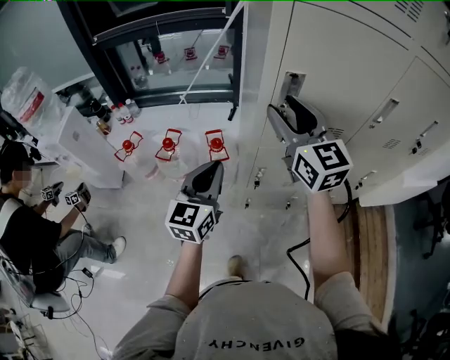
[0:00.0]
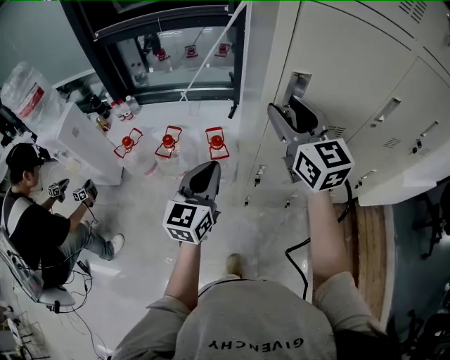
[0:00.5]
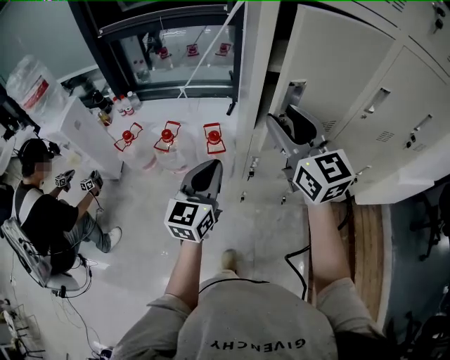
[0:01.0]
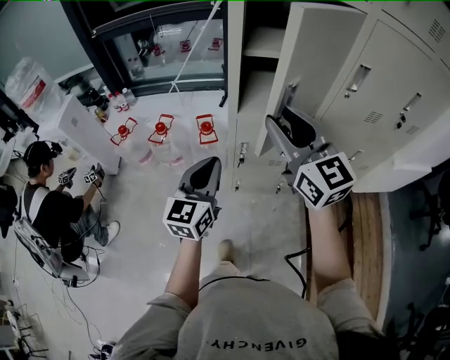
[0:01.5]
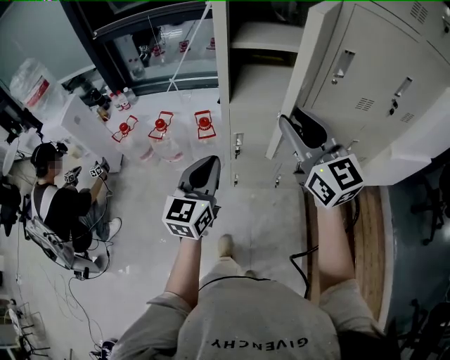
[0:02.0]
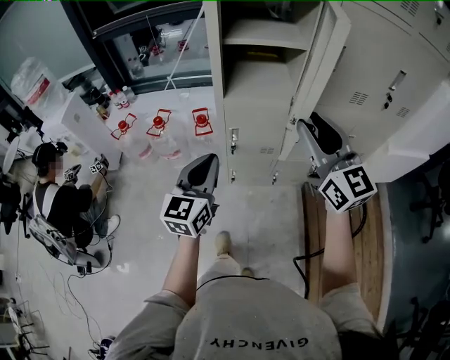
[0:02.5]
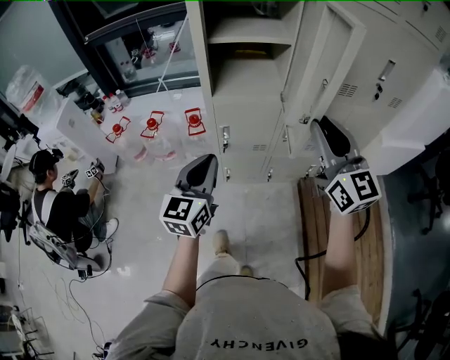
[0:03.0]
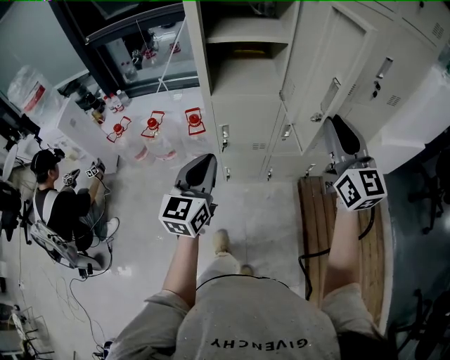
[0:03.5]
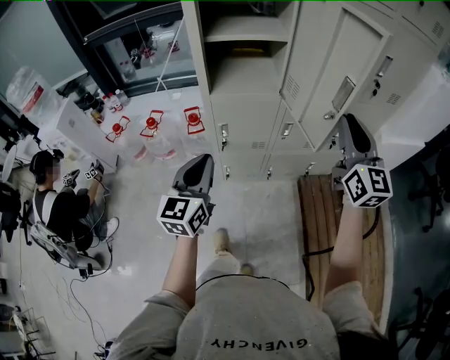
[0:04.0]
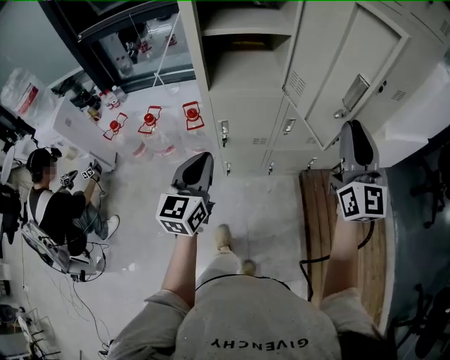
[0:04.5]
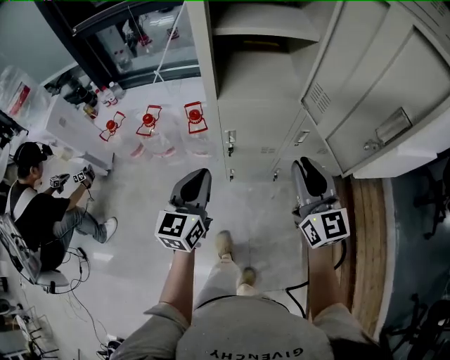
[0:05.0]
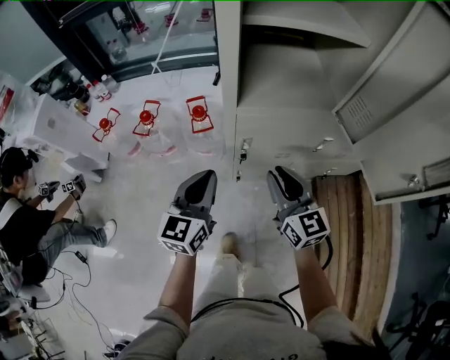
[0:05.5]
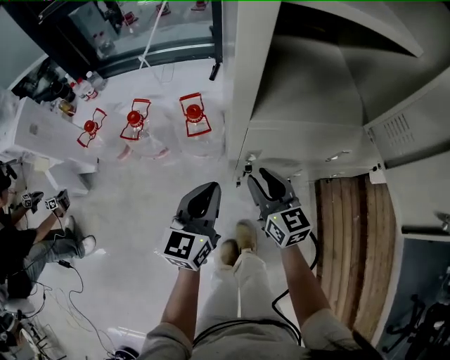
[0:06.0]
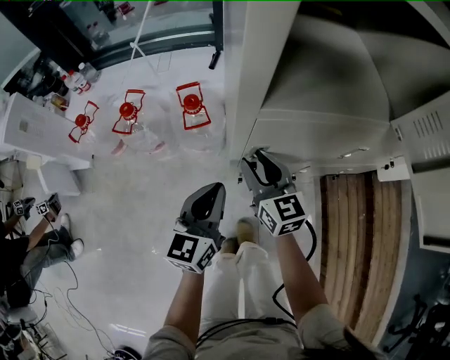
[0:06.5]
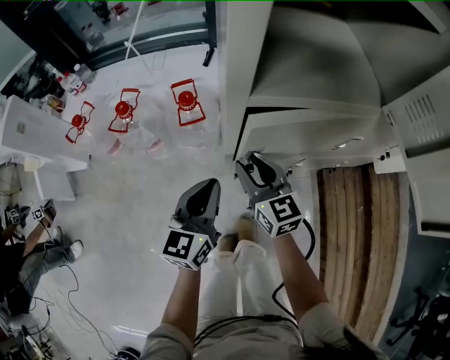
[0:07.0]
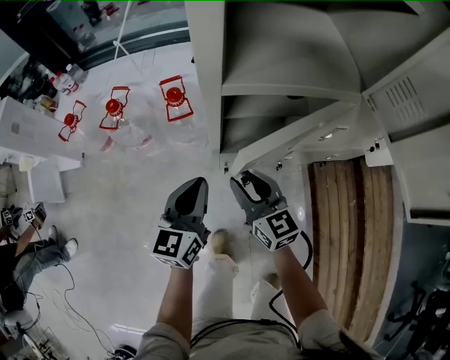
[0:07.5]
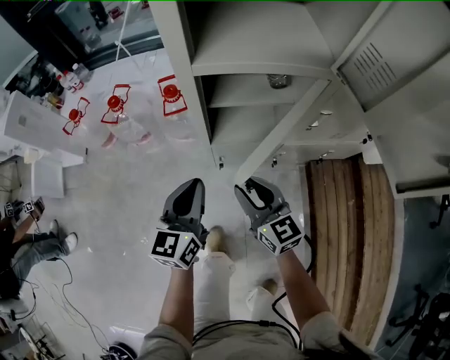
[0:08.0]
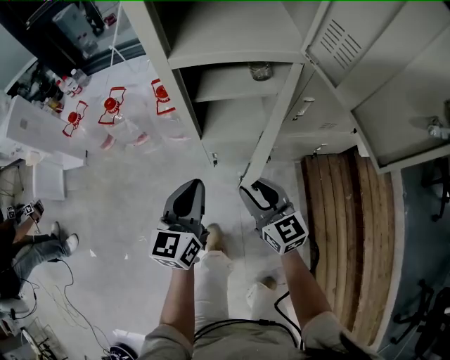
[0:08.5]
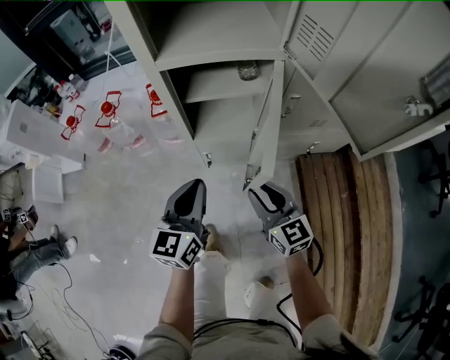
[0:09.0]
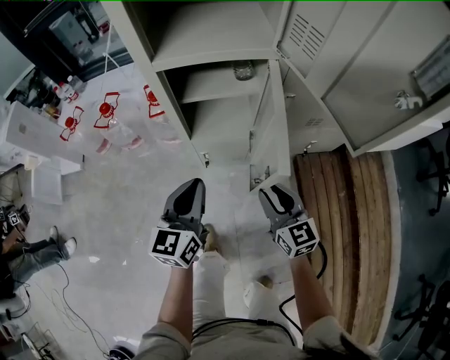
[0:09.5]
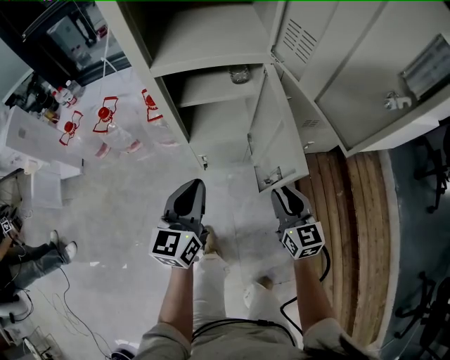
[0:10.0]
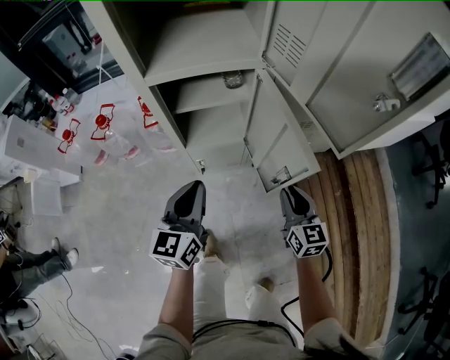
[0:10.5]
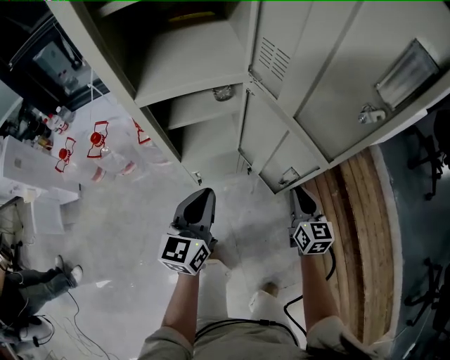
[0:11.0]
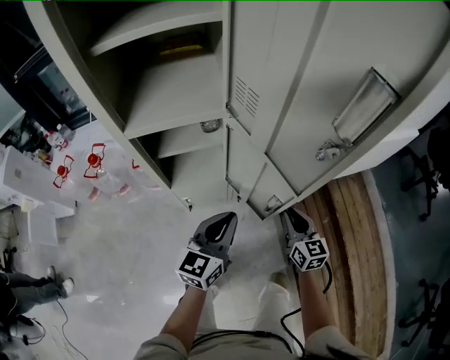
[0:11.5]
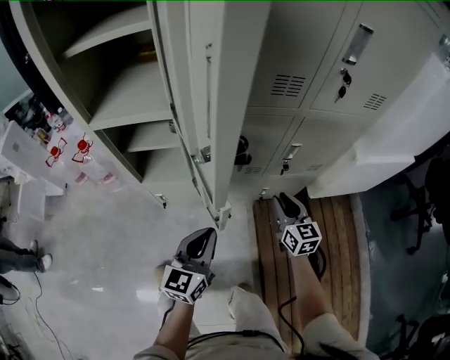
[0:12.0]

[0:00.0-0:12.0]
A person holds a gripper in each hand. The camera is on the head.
0:00.0 to 0:02.0: Both grippers travel together backward and to the right, some 20 cm.
0:02.0 to 0:04.0: The right gripper is displaced to the right by approximately 20 cm, and turns by approximately 20 degrees. Meanwhile the left gripper ends up roughly 5 cm from where it was.
0:04.0 to 0:06.0: The right gripper heads downward, to the left and forward, covering about 60 cm, and turns by some 30 degrees; the left gripper shifts about 35 cm downward, forward and to the left.
0:06.0 to 0:08.0: Both grippers move backward and to the right, some 10 cm.
0:08.0 to 0:10.0: The left gripper travels to the right and backward by approximately 10 cm; the right gripper is displaced to the right and backward by approximately 20 cm.
0:10.0 to 0:12.0: The right gripper is displaced to the right and forward by roughly 30 cm. The left gripper goes some 30 cm to the right.

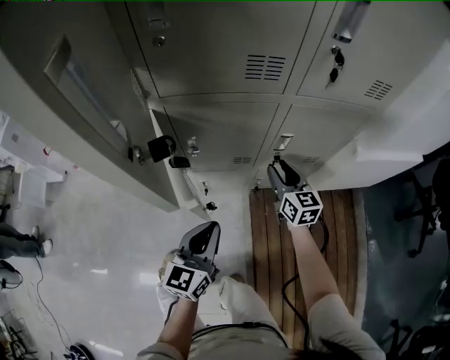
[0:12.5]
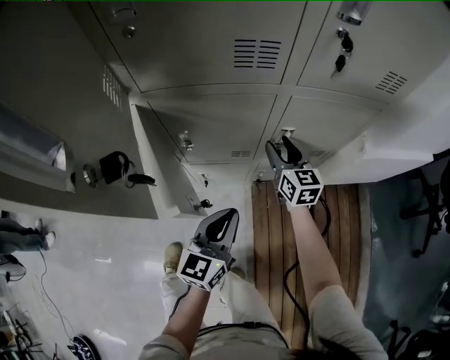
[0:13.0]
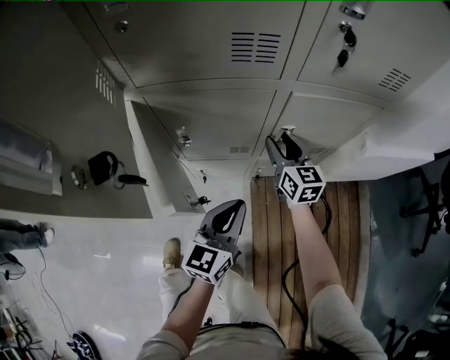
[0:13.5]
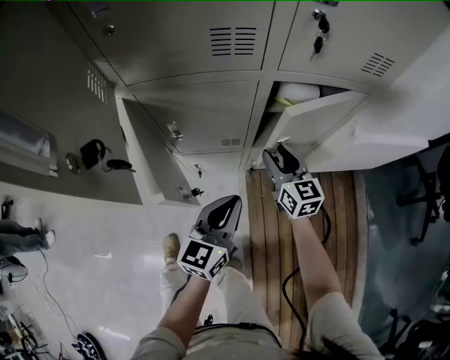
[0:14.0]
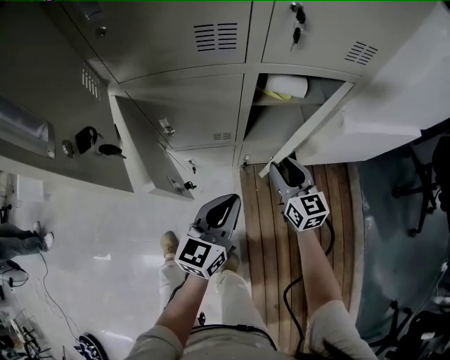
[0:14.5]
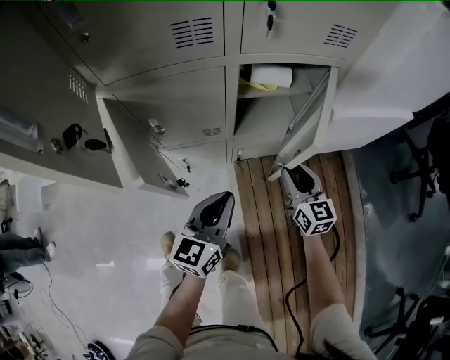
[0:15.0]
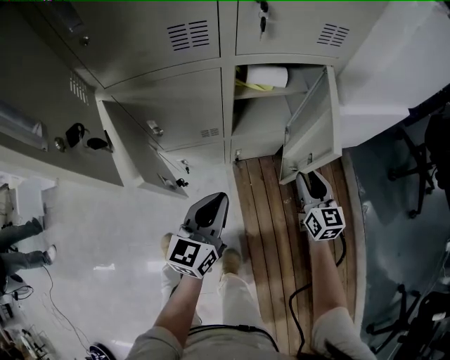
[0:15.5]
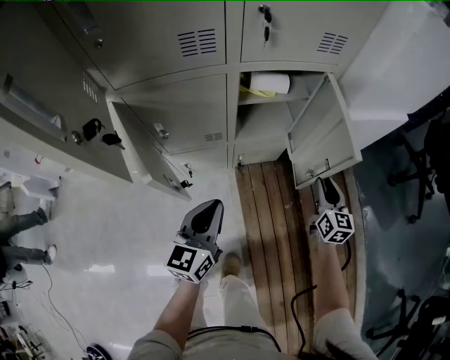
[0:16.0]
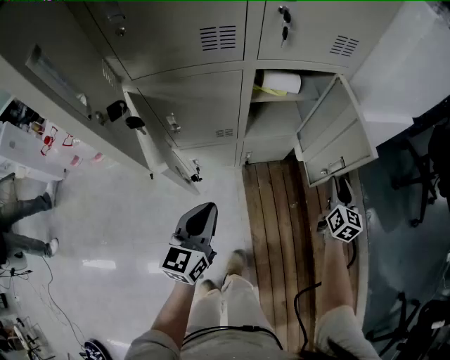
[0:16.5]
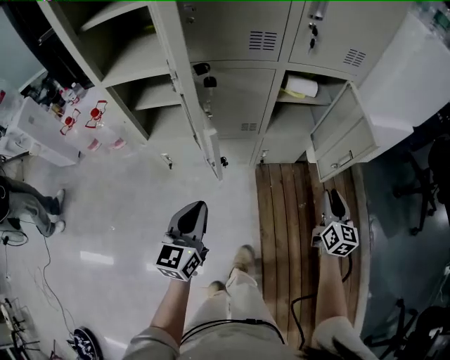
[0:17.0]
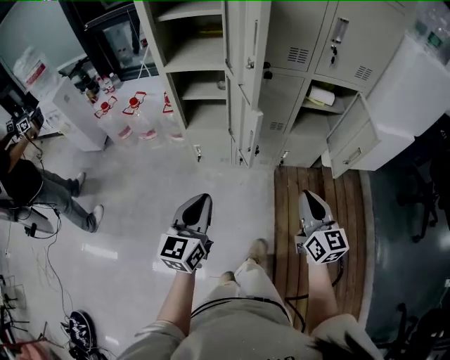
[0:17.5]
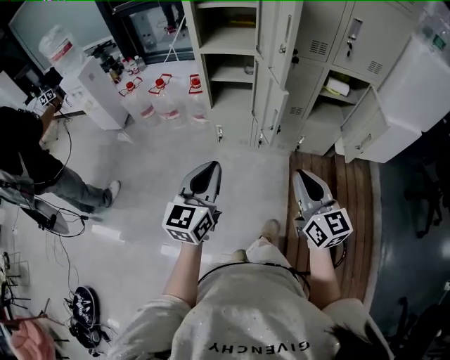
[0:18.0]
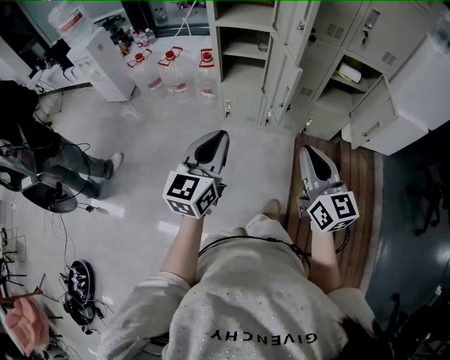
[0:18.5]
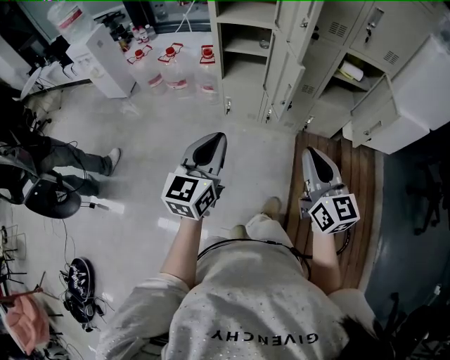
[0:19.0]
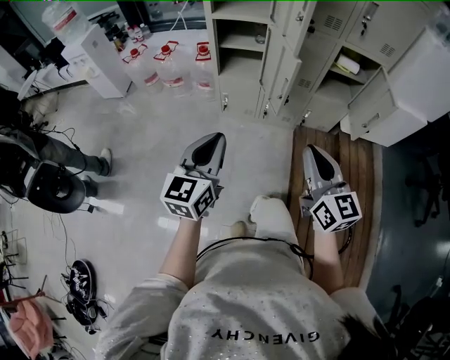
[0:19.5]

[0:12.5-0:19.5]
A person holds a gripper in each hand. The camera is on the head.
0:12.5 to 0:14.5: The right gripper moves to the right and backward, some 10 cm; the left gripper shifts some 10 cm to the right.
0:14.5 to 0:16.0: The right gripper heads to the right, covering some 20 cm, and changes its angle by about 30 degrees.
0:16.0 to 0:17.5: The grippers both shift backward, to the left and upward by approximately 40 cm. The right gripper rotates about 30 degrees, and closes its fingers.
0:17.5 to 0:19.5: The right gripper heads to the left, backward and upward, covering about 20 cm; the left gripper goes about 15 cm backward, to the left and upward.

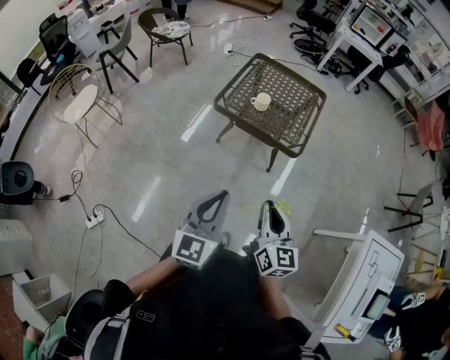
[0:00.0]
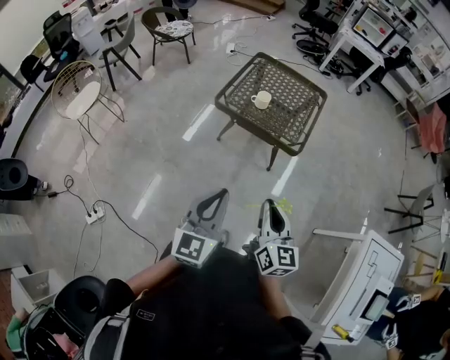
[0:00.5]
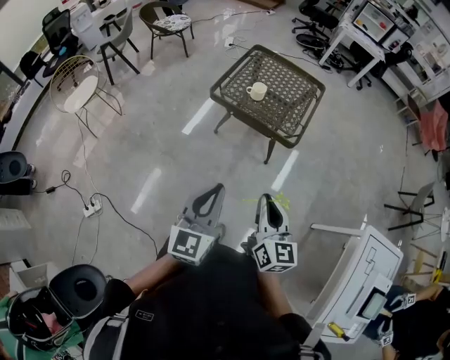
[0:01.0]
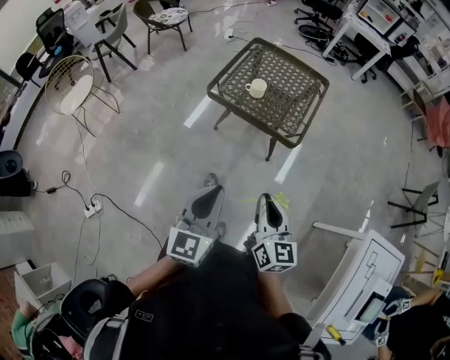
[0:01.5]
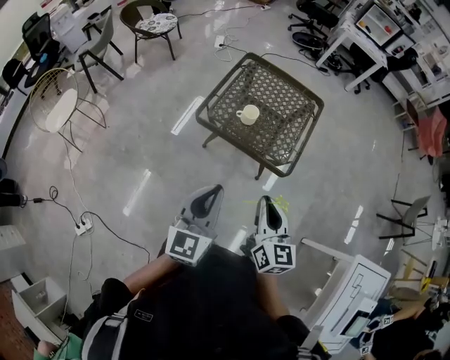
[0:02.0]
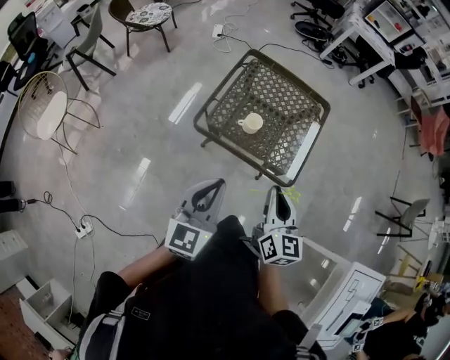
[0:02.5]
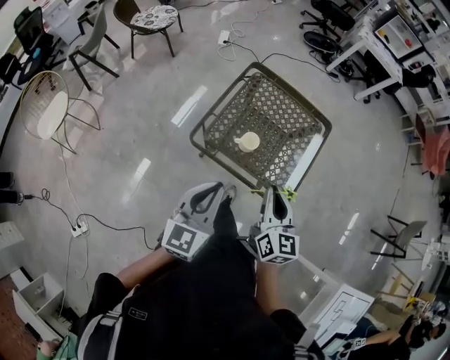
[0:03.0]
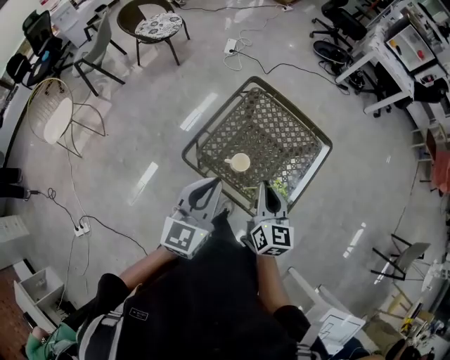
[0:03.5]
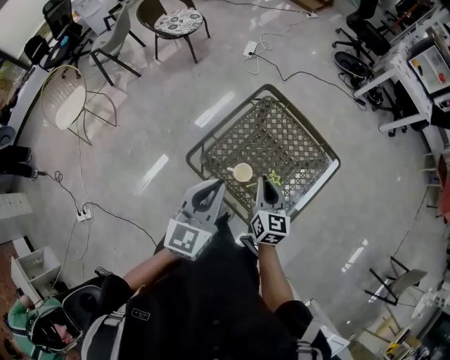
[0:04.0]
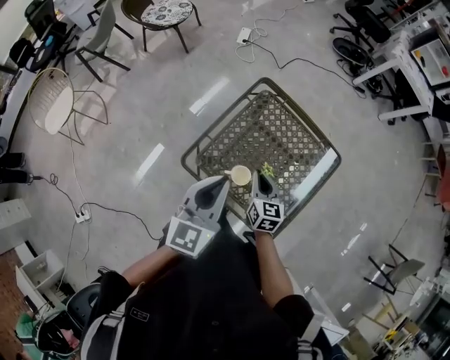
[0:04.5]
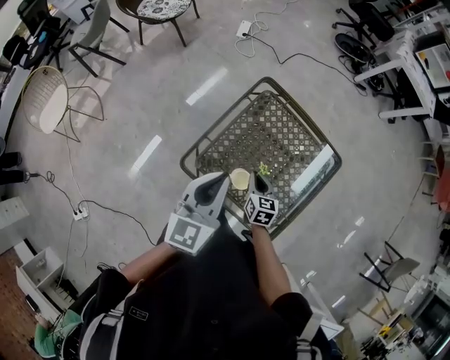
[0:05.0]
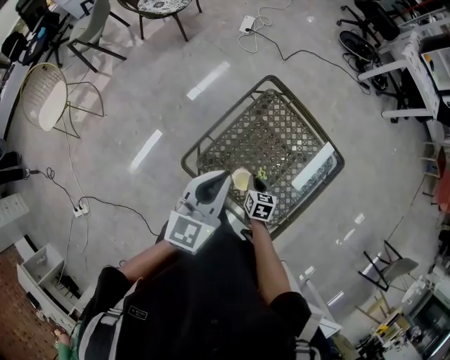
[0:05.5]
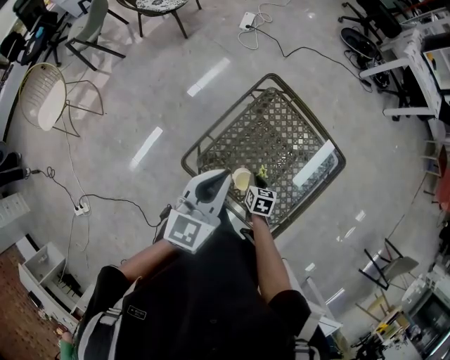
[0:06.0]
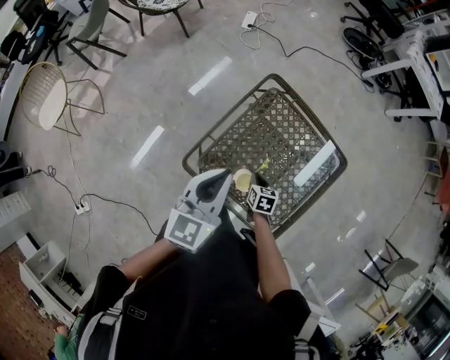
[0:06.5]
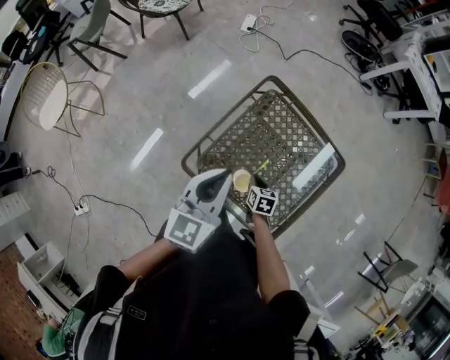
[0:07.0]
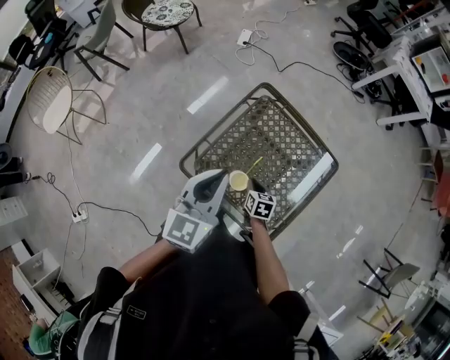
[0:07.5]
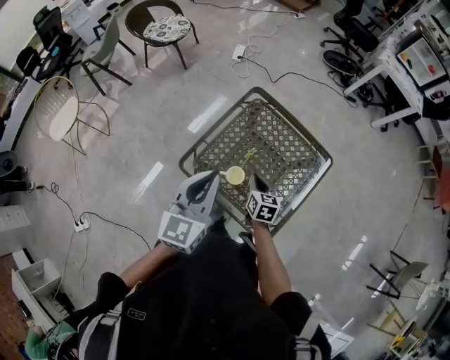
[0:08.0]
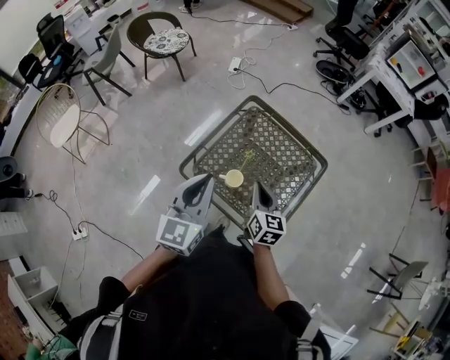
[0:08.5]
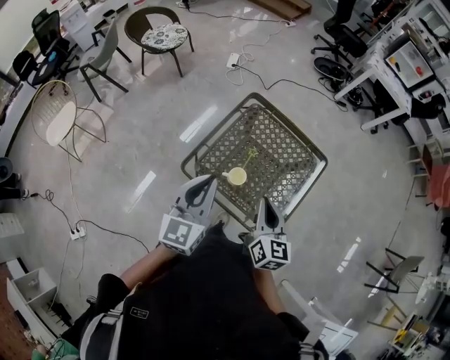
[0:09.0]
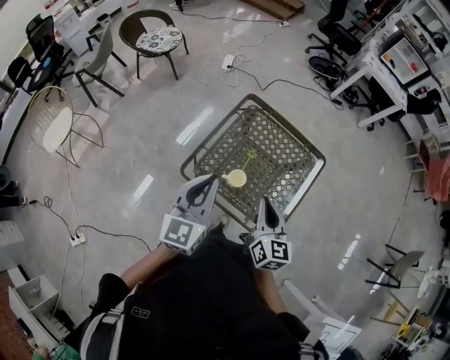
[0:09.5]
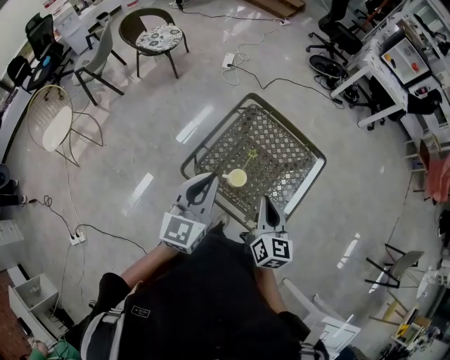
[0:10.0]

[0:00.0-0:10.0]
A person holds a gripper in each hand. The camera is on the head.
0:00.0 to 0:02.0: The grippers both shift forward by some 20 cm.
0:02.0 to 0:04.0: The grippers both shift forward by roughly 40 cm.
0:04.0 to 0:06.0: The right gripper is displaced downward by approximately 25 cm, and tips its fingers downward by some 40 degrees. Meanwhile the left gripper moves forward, about 15 cm.
0:06.0 to 0:08.0: The right gripper is displaced upward by roughly 10 cm. Meanwhile the left gripper is displaced backward and upward by about 15 cm.
0:08.0 to 0:10.0: The left gripper ends up roughly 5 cm from where it was, while the right gripper shifts approximately 20 cm upward and backward, and swivels about 20 degrees.
